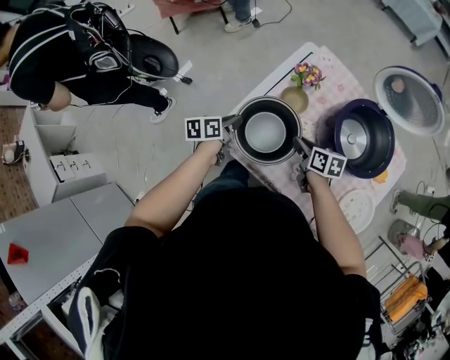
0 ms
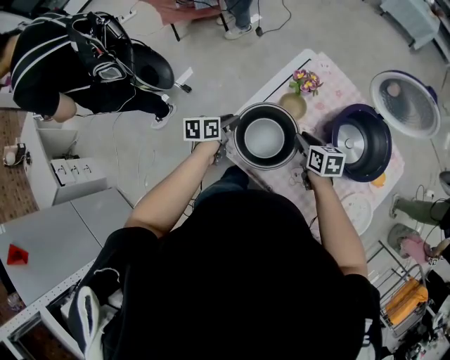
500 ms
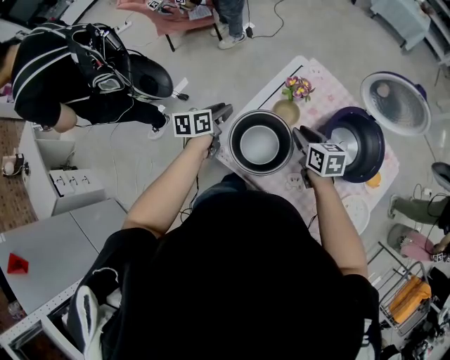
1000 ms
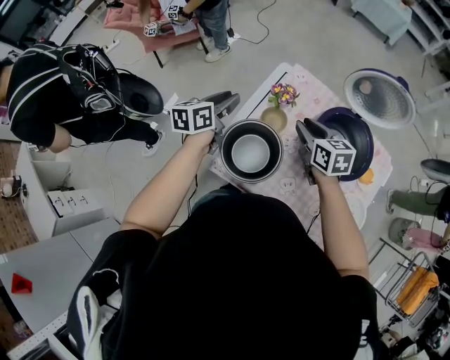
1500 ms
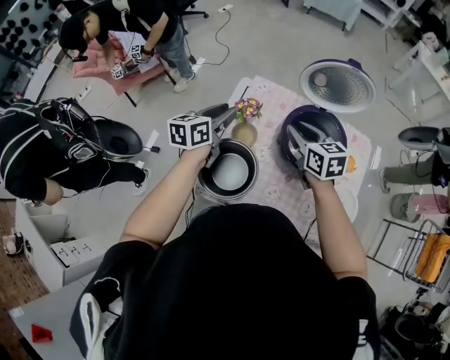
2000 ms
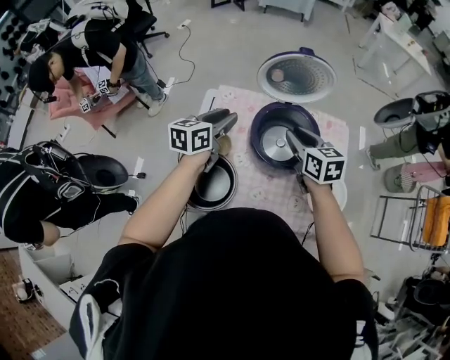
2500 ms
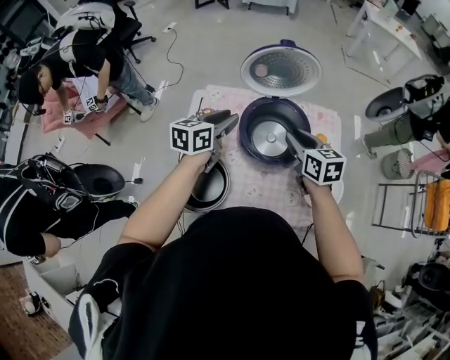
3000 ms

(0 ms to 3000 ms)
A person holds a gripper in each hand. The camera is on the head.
0 ms - 1500 ms: Both grippers travel together upward and forward, approximately 20 cm. The left gripper changes its angle by roughly 30 degrees. Meanwhile the right gripper turns by about 30 degrees.
1500 ms - 3000 ms: The right gripper ends up about 25 cm from where it was, and changes its angle by roughly 30 degrees. The left gripper ends up about 30 cm from where it was, and swivels approximately 30 degrees.

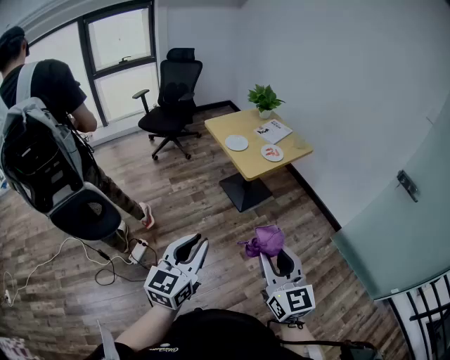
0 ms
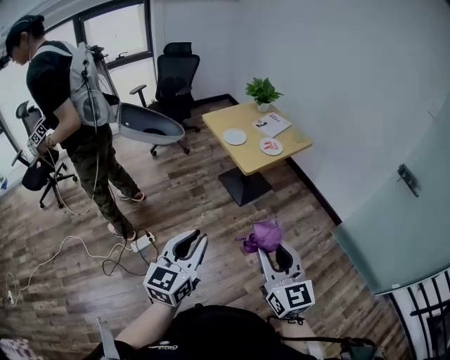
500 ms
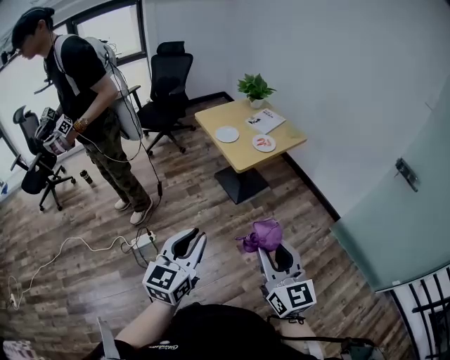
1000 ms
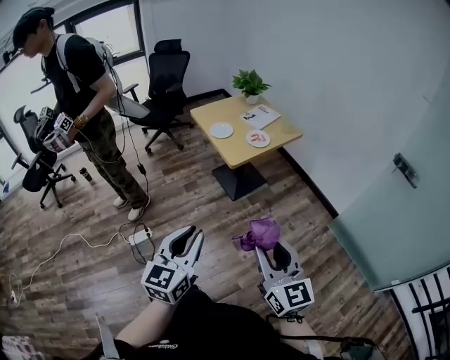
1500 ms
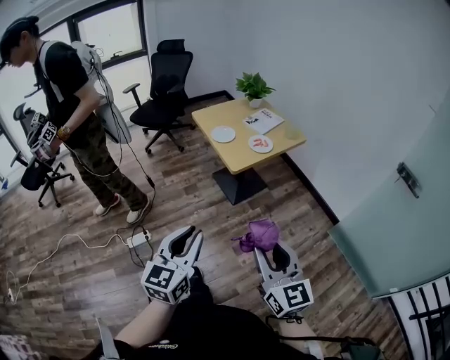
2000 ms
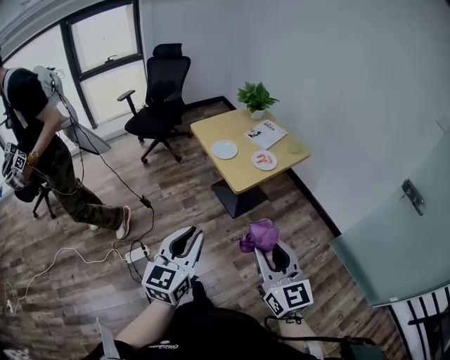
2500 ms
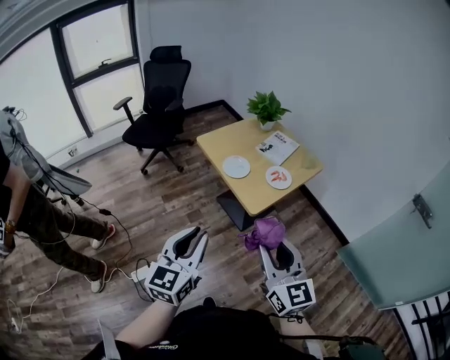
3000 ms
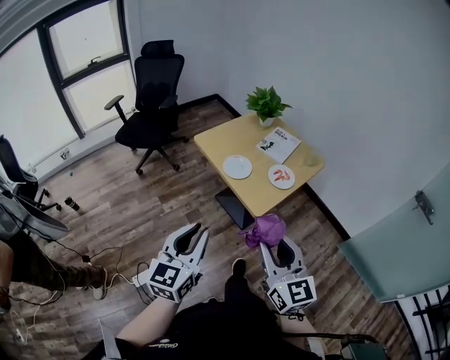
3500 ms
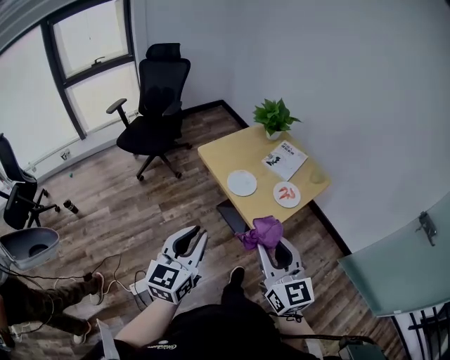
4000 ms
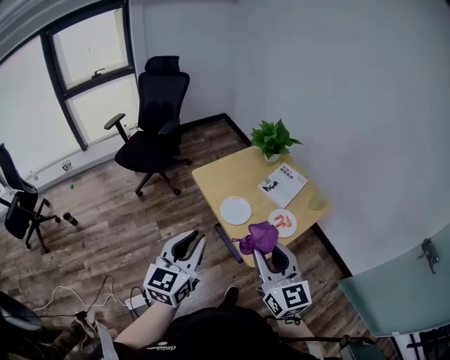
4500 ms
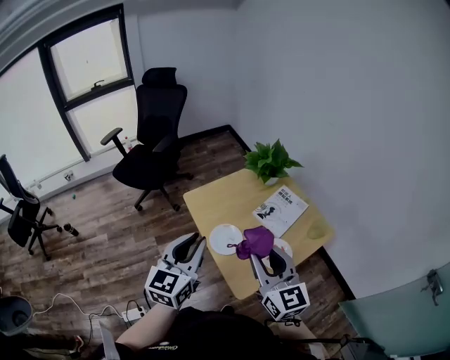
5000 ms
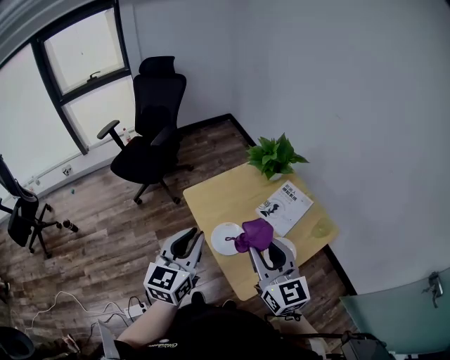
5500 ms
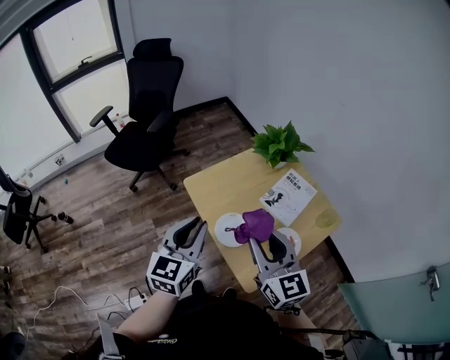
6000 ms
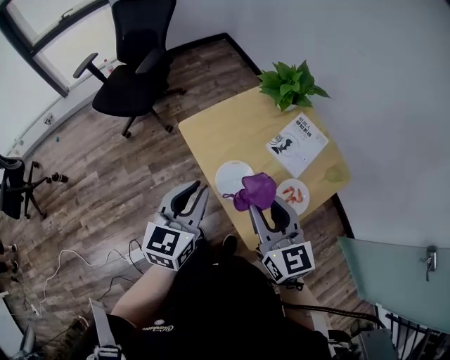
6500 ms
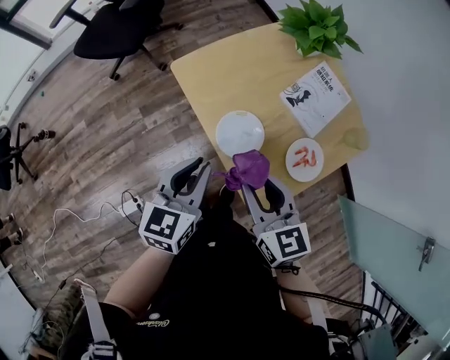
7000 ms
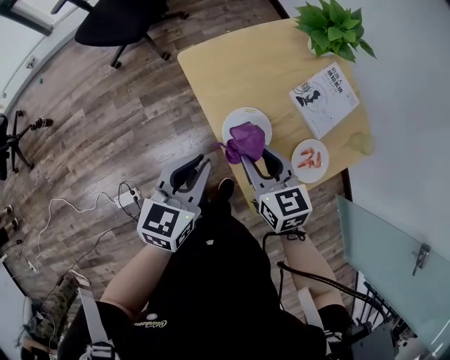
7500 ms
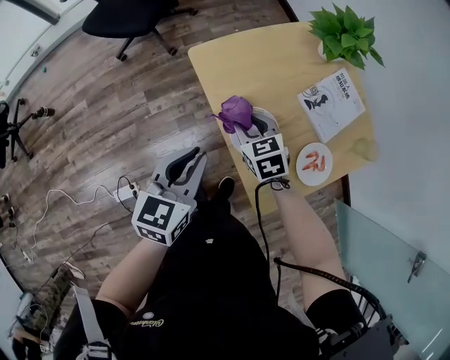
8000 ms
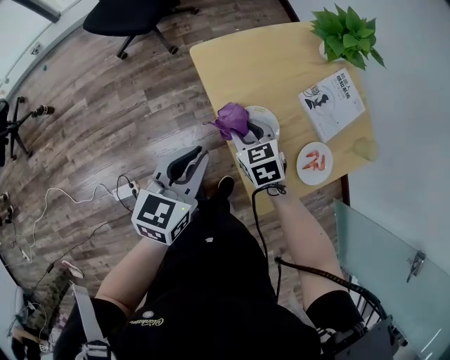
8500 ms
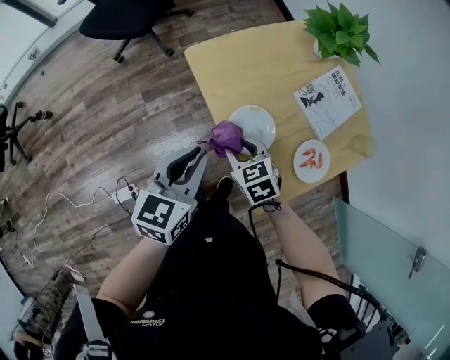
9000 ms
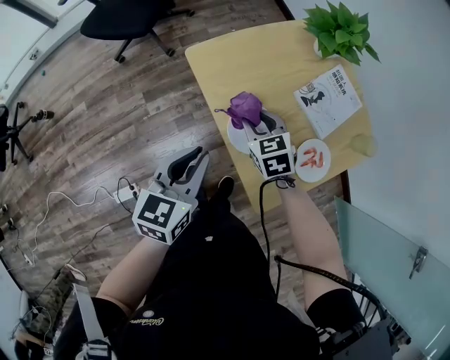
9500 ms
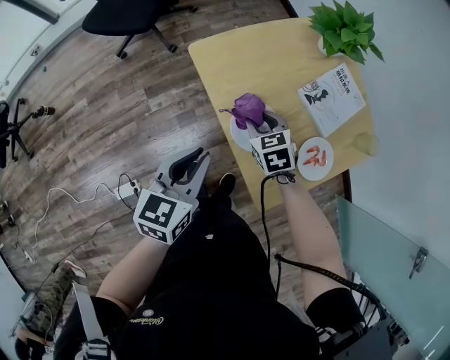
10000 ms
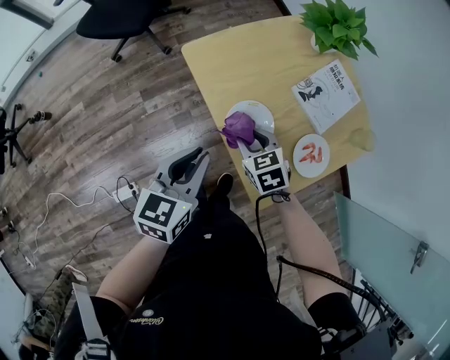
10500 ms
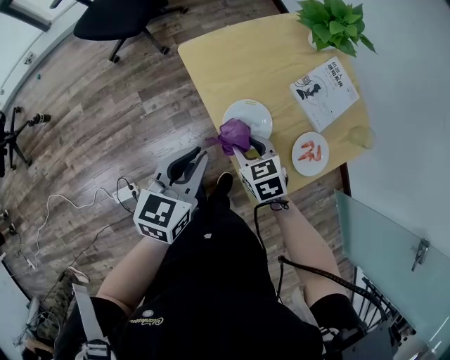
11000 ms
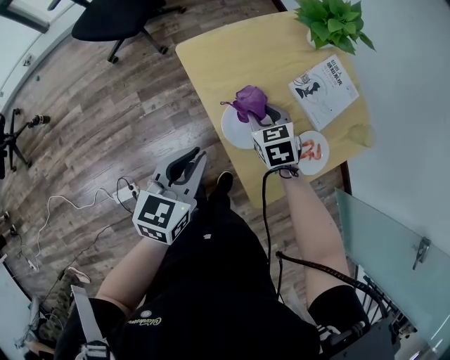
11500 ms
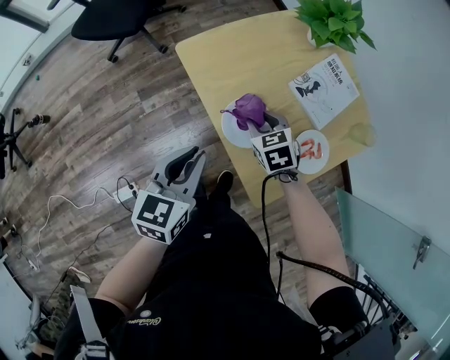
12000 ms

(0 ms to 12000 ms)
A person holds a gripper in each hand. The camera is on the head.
0 ms - 2000 ms: The two grippers go some 10 cm to the right.
2000 ms - 4000 ms: The two grippers travel together, forward and to the left, approximately 40 cm.
4000 ms - 6000 ms: Both grippers travel together forward, about 30 cm.
6000 ms - 8000 ms: The right gripper is displaced downward by about 30 cm, and angles its fingers downward, by about 40 degrees. The left gripper goes about 20 cm downward, and changes its angle by some 20 degrees.
8000 ms - 10000 ms: The right gripper reaches about 5 cm backward, then returns.
10000 ms - 12000 ms: The right gripper goes backward and returns, some 10 cm each way.

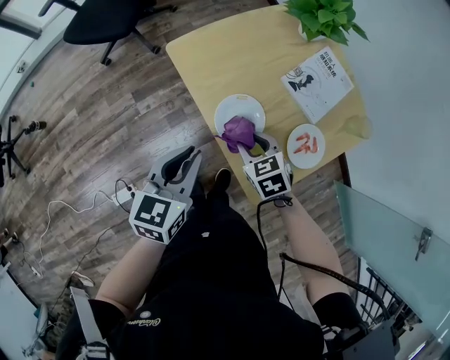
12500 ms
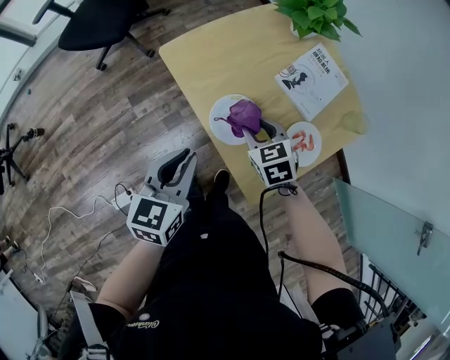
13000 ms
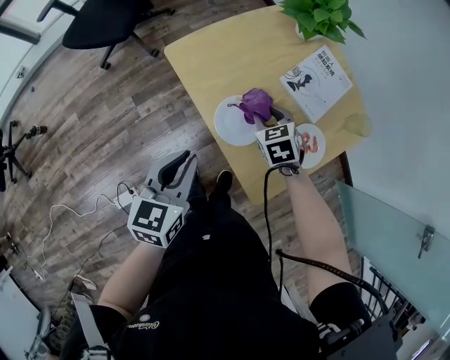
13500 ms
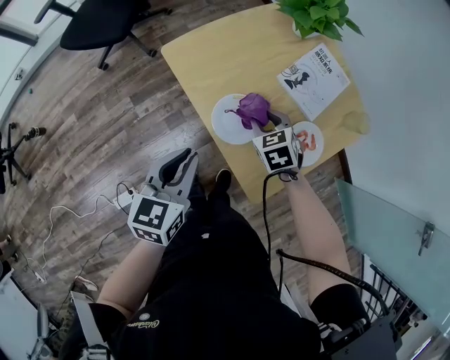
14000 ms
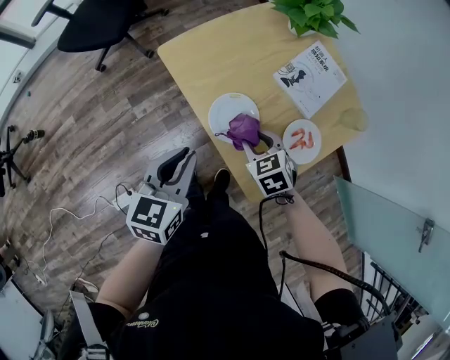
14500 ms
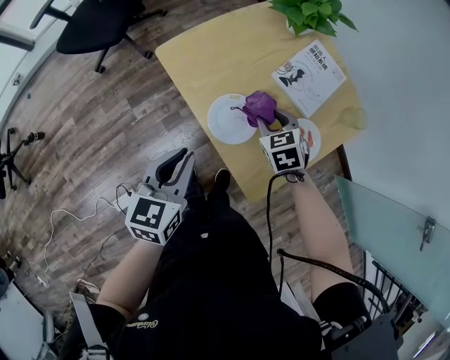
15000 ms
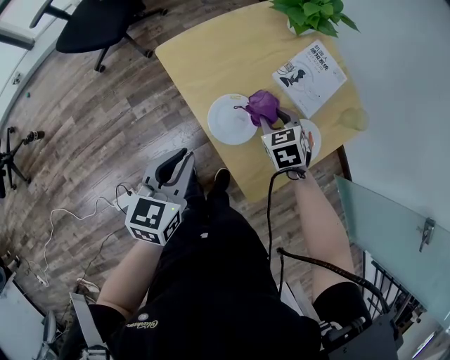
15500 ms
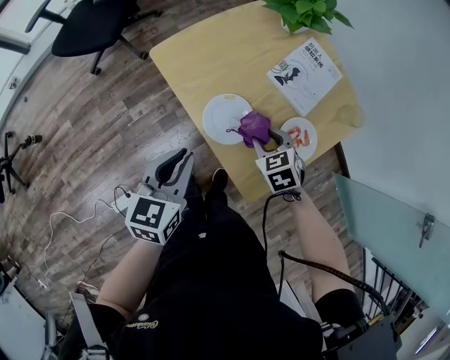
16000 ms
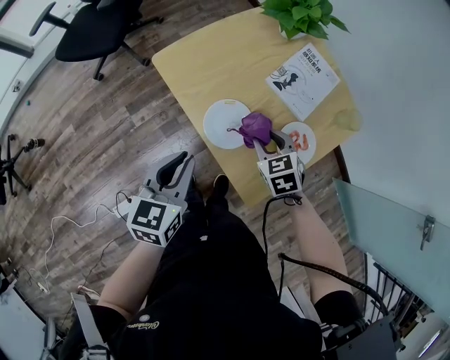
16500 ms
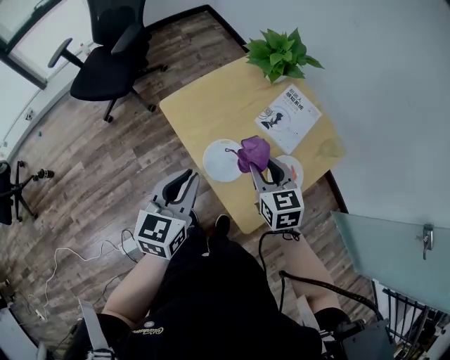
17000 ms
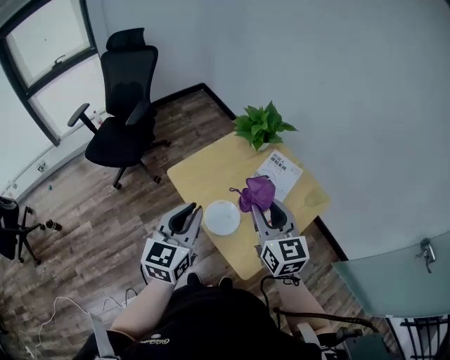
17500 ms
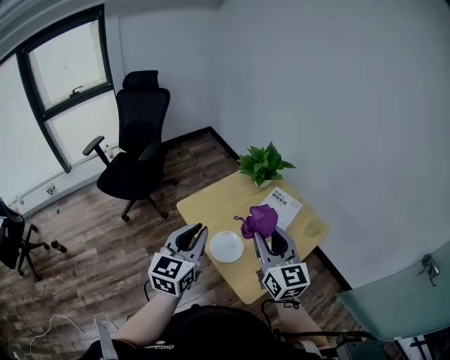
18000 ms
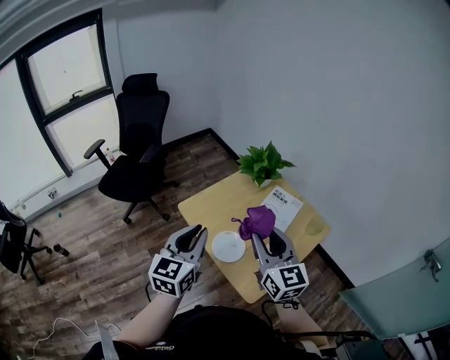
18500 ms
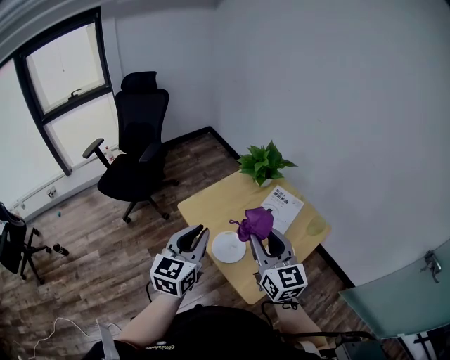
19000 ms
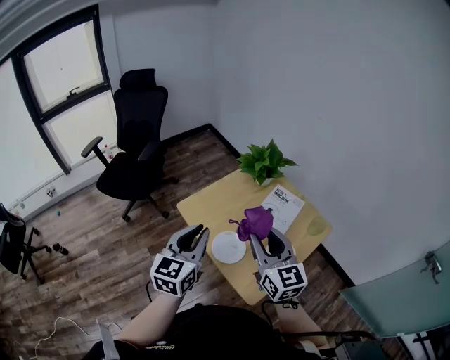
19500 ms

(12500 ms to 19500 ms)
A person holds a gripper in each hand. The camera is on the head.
12500 ms - 14500 ms: The right gripper moves about 10 cm forward and comes back.
16000 ms - 17500 ms: The right gripper goes about 30 cm upward, and angles its fingers upward, by some 50 degrees; the left gripper is displaced upward by some 20 cm, and turns by approximately 20 degrees.
17500 ms - 19500 ms: The right gripper changes place by roughly 5 cm.

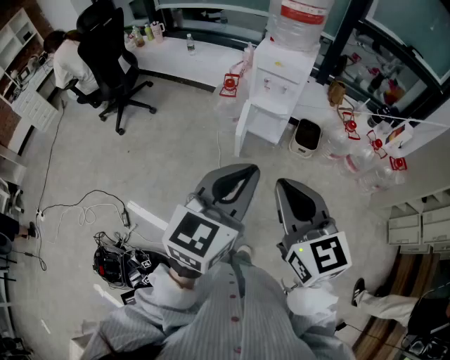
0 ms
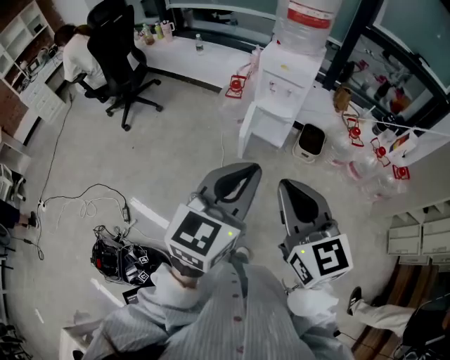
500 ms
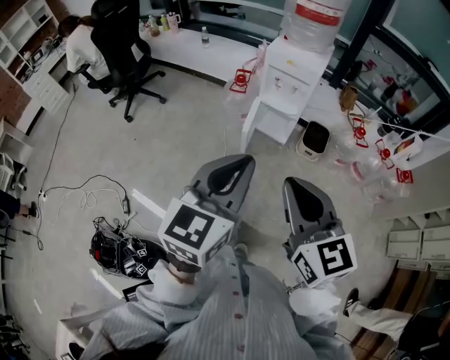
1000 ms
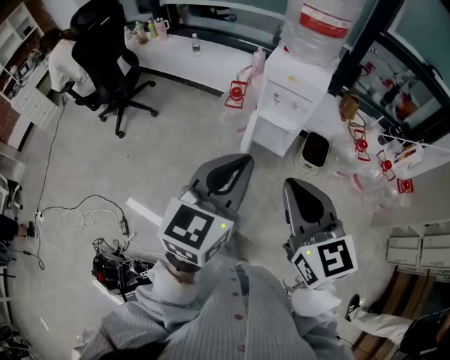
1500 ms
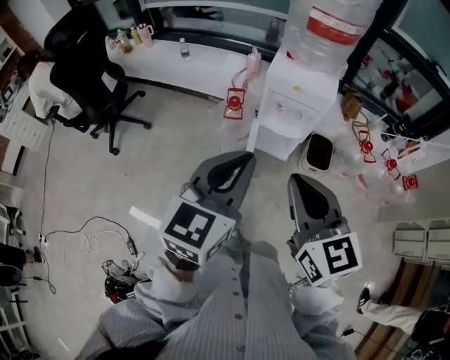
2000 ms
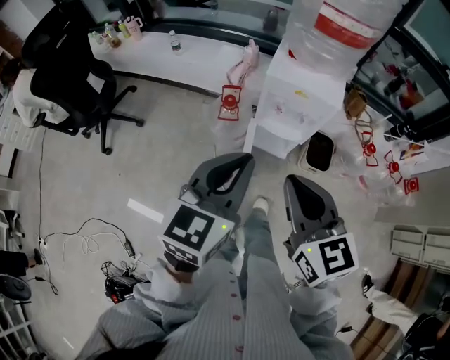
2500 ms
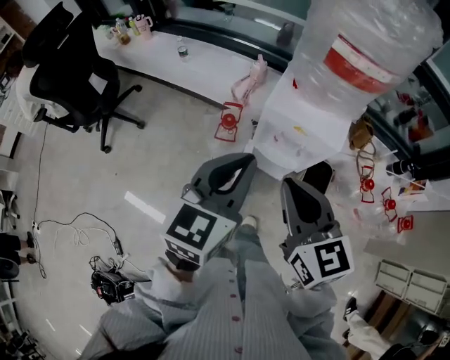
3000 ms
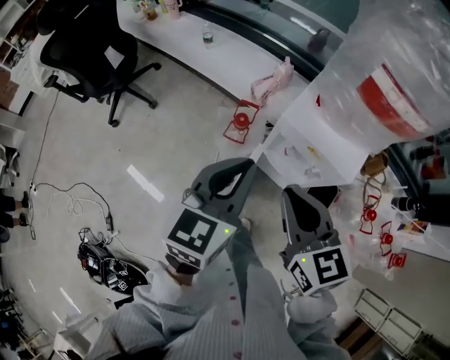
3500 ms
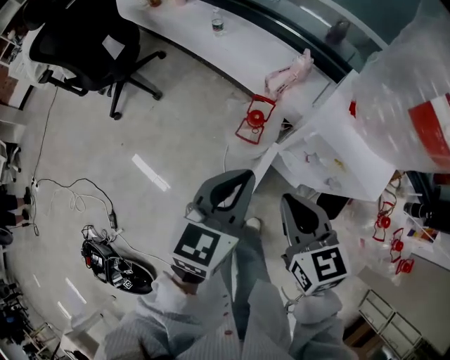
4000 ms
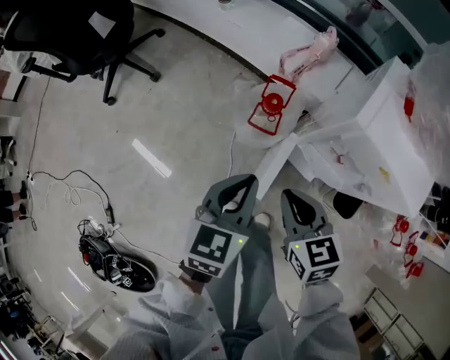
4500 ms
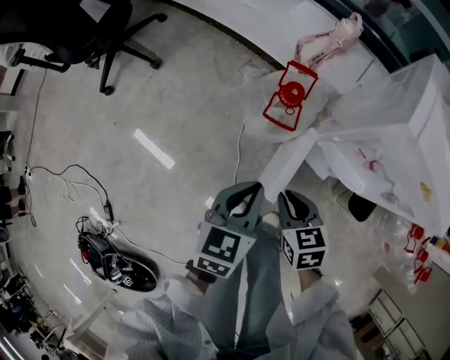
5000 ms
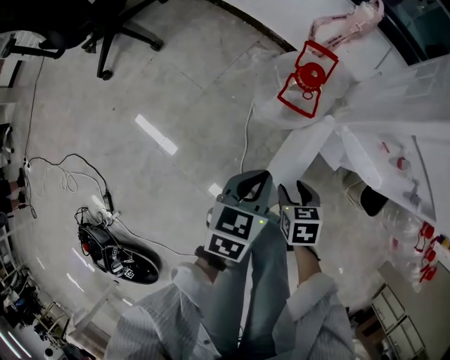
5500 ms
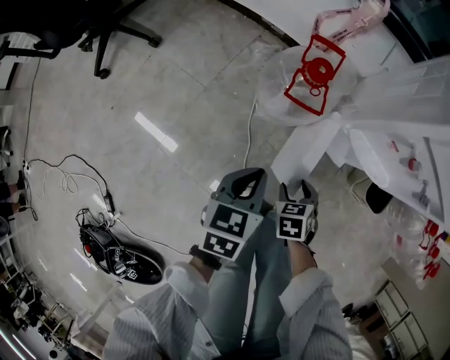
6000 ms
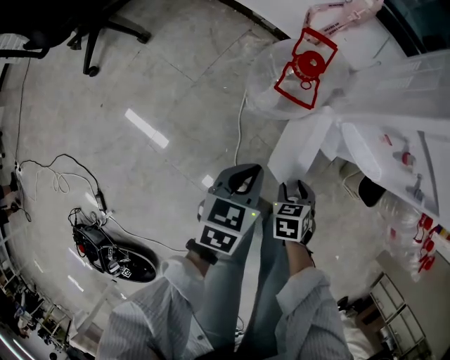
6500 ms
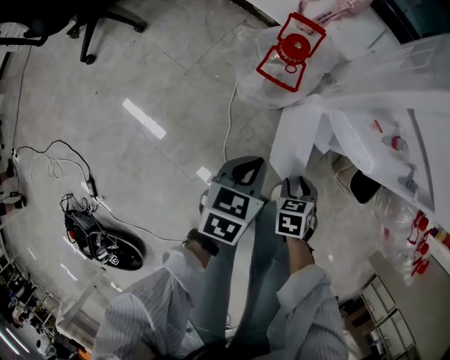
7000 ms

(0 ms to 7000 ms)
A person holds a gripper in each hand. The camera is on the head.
0 ms - 2000 ms: Both grippers travel together forward, about 25 cm.
2000 ms - 3500 ms: Both grippers move forward, about 25 cm. The right gripper changes its angle by roughly 20 degrees.
3500 ms - 5000 ms: The grippers both shift downward by some 40 cm. The left gripper rotates roughly 20 degrees. The right gripper changes its angle by roughly 30 degrees.
5000 ms - 7000 ms: The left gripper shifts some 15 cm downward. The right gripper heads downward and to the right, covering approximately 20 cm, rotates about 30 degrees, and opens.
